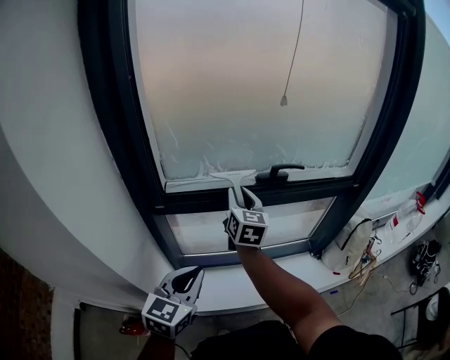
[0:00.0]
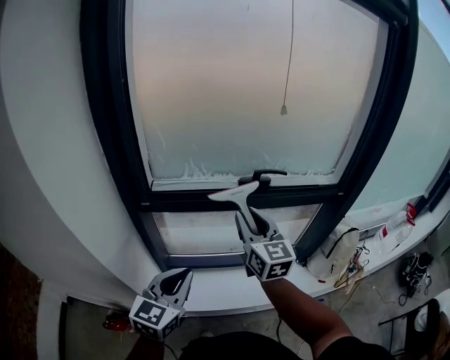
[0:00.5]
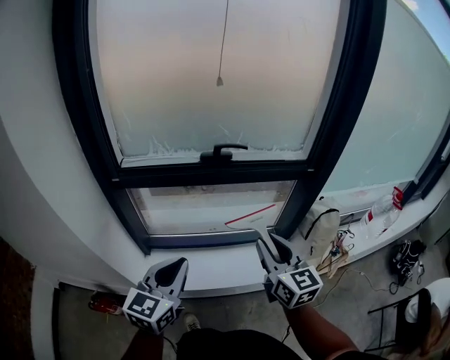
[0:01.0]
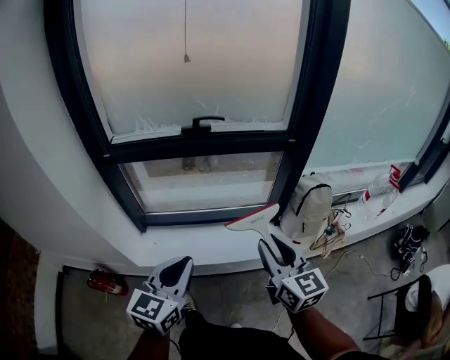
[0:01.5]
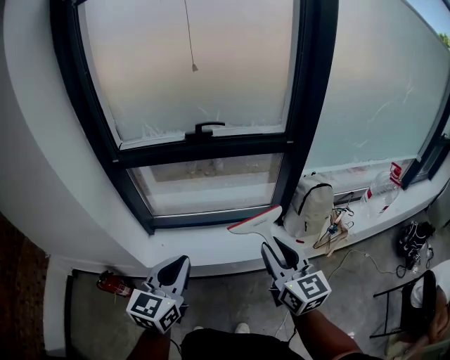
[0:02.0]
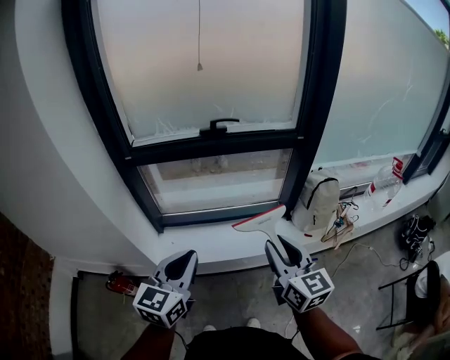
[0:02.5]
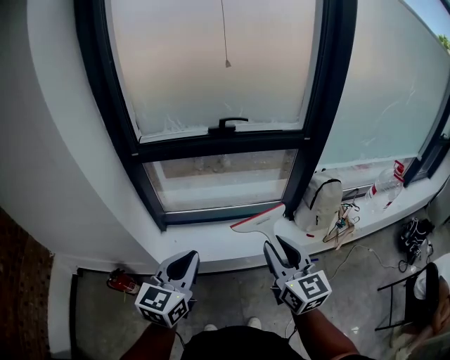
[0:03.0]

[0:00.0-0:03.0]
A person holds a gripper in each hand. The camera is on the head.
0:00.0 to 0:01.5: The left gripper is displaced to the right and backward by approximately 30 cm; the right gripper goes about 50 cm to the right and backward.
0:01.5 to 0:03.0: The left gripper heads to the left, covering some 10 cm. The right gripper goes roughly 10 cm to the left and backward.

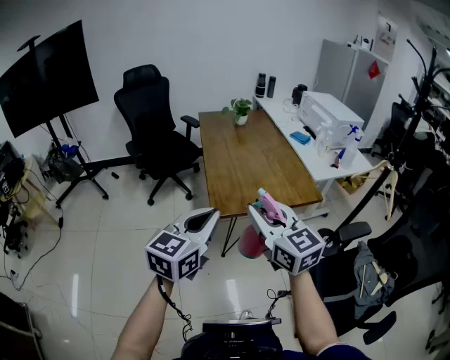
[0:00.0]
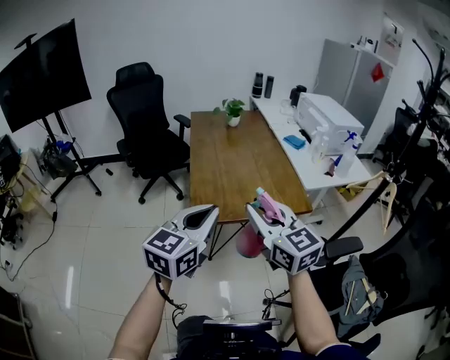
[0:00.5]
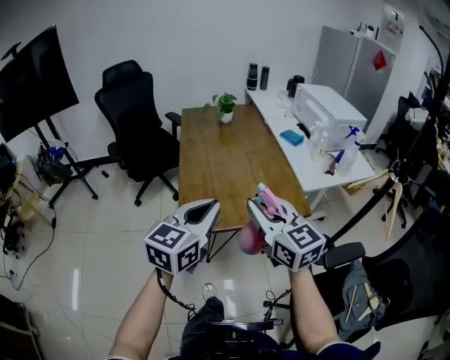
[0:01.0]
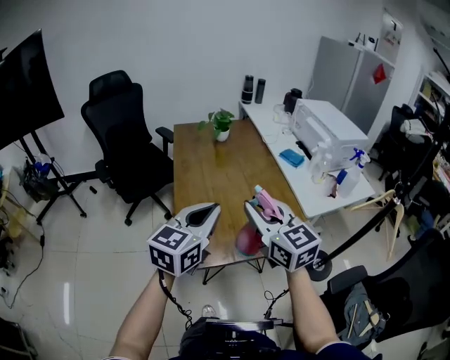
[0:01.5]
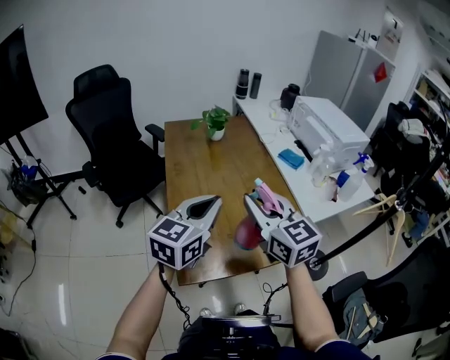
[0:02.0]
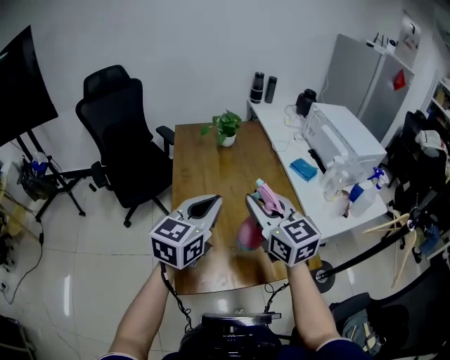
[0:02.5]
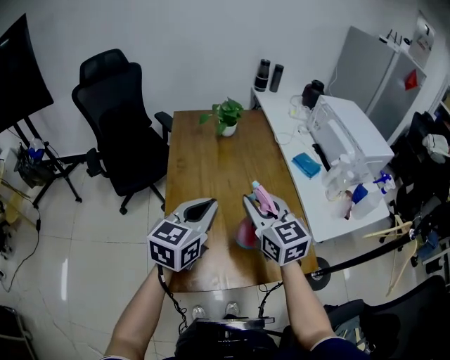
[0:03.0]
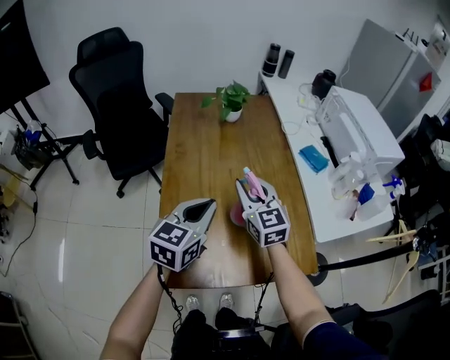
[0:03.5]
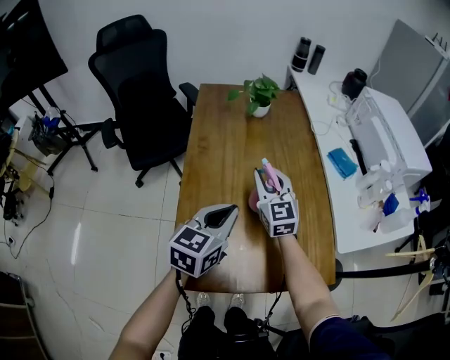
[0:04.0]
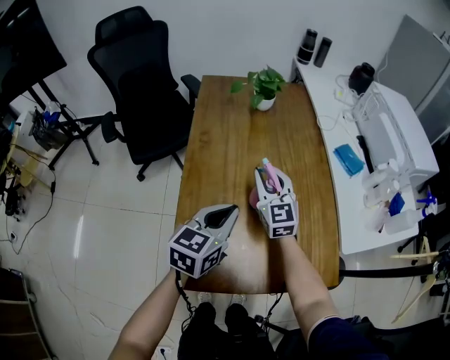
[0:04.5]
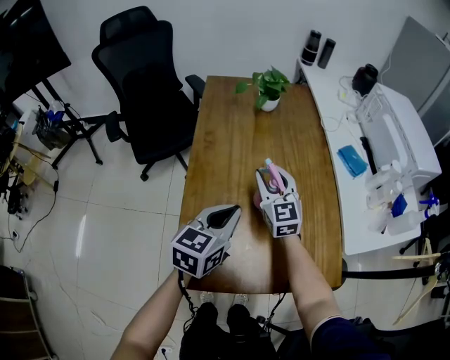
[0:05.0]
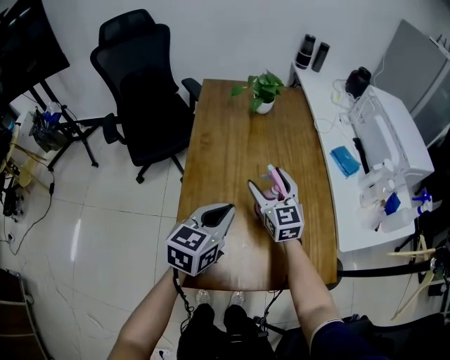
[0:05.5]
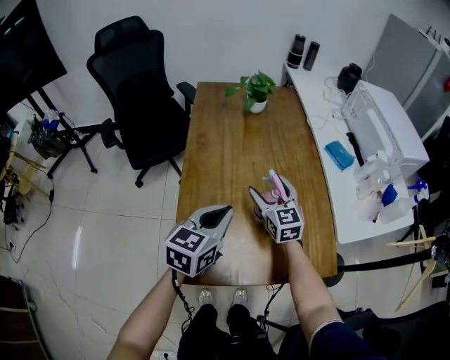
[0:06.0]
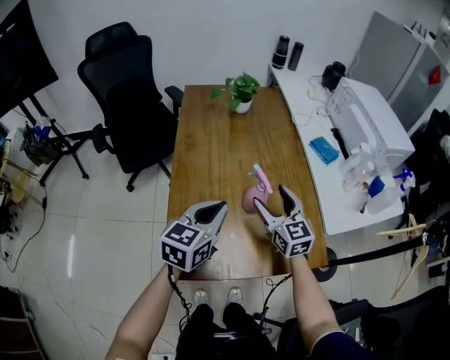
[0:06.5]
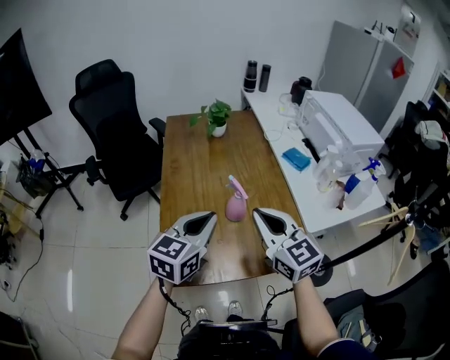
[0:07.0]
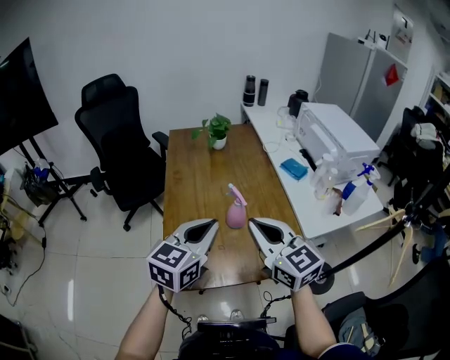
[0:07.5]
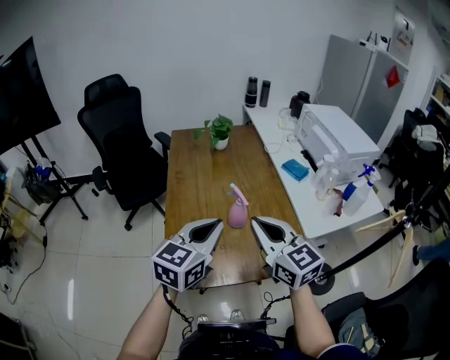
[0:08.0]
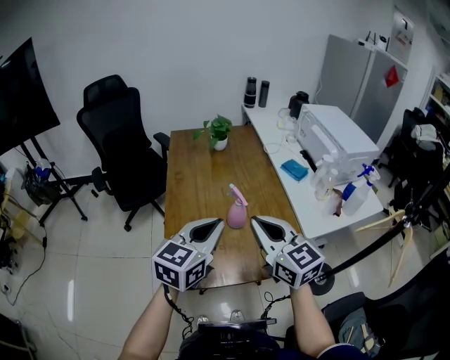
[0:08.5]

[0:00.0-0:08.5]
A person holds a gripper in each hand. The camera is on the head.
0:00.0 to 0:02.0: The two grippers go roughly 35 cm forward.
0:02.0 to 0:04.0: The right gripper is displaced forward and downward by about 30 cm; the left gripper goes approximately 15 cm downward and forward.
0:04.0 to 0:06.5: The right gripper shifts roughly 15 cm backward and to the right, and opens up.
0:06.5 to 0:08.5: The left gripper heads upward and backward, covering about 15 cm; the right gripper travels upward and backward by some 20 cm, and closes its fingers.

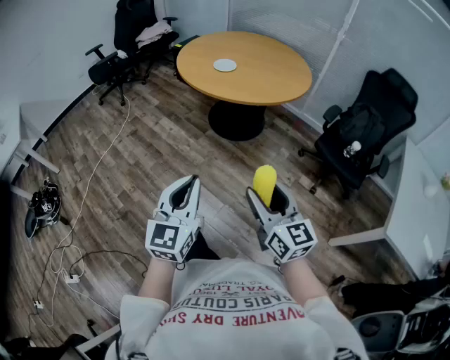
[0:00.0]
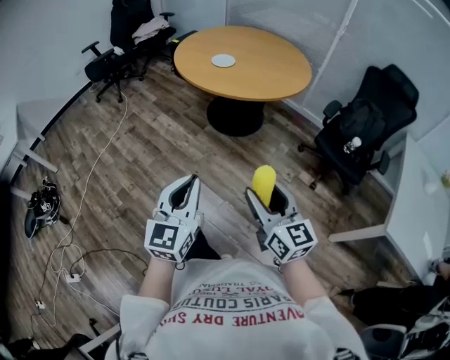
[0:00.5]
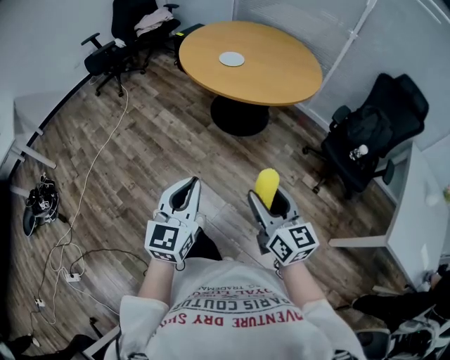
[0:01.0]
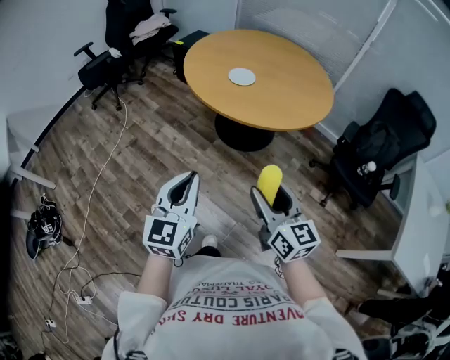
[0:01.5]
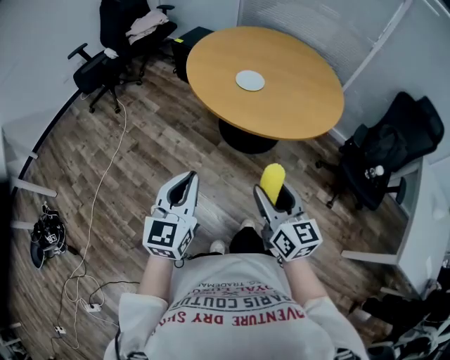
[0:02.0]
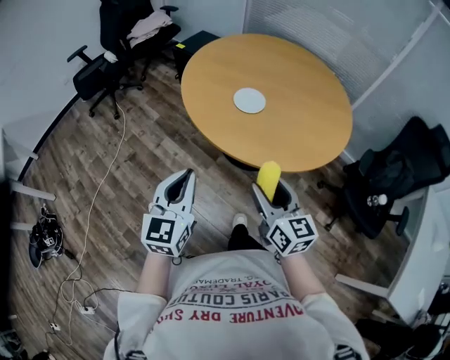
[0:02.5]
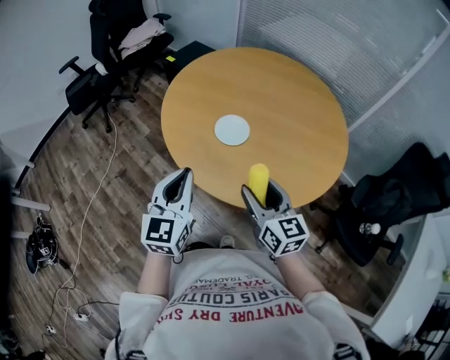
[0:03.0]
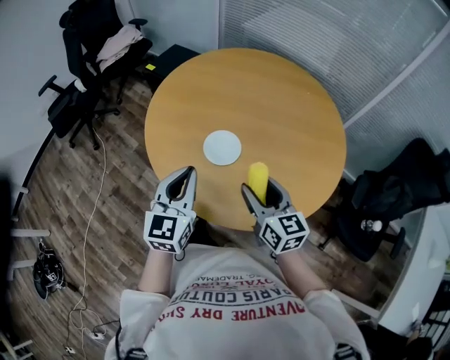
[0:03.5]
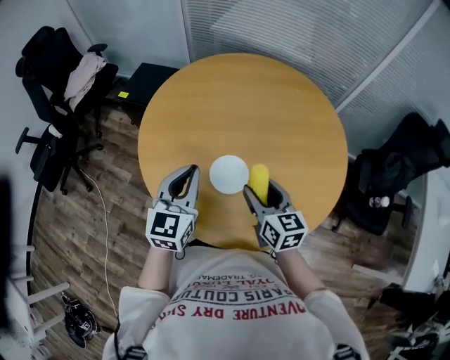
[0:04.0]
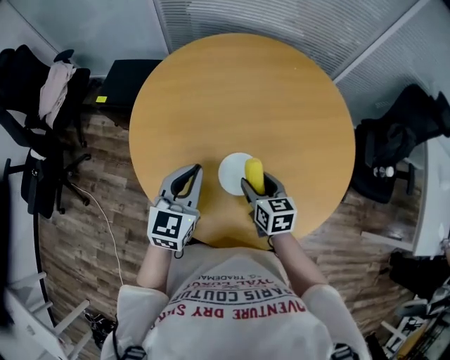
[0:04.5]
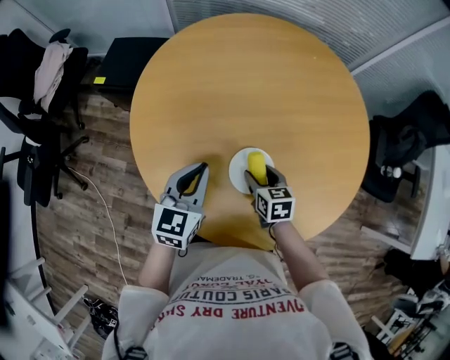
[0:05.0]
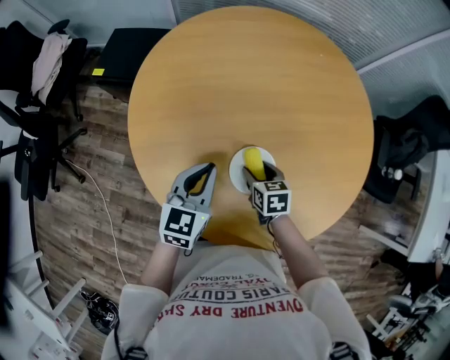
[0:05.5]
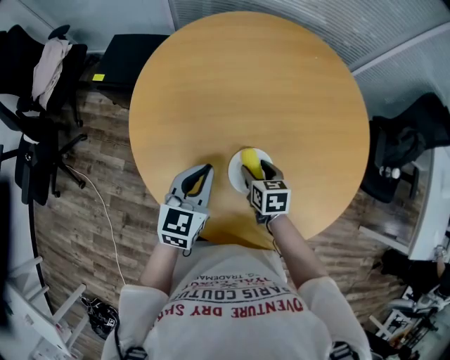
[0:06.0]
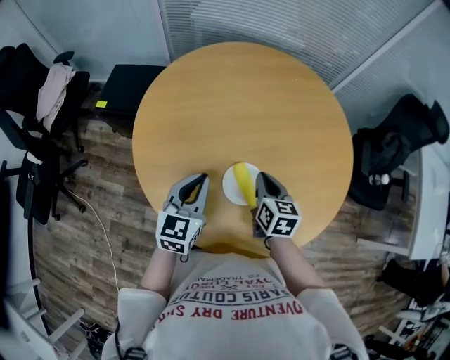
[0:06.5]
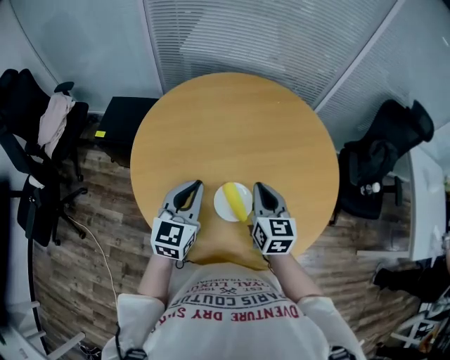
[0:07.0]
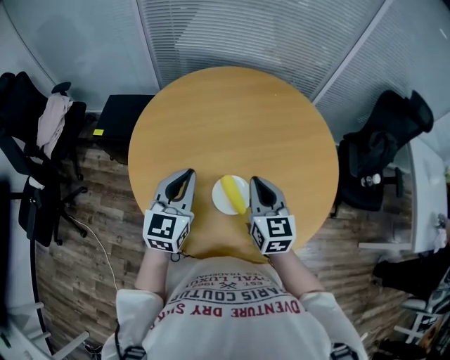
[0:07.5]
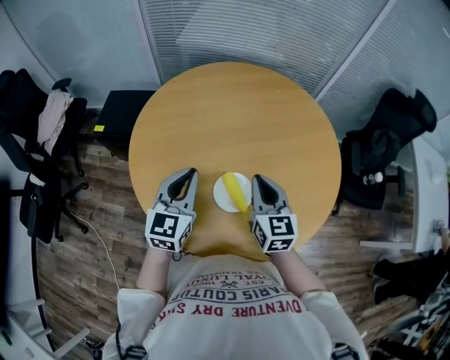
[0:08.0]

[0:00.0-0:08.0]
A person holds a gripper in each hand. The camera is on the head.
0:00.0 to 0:02.0: The two grippers go roughly 35 cm forward and to the left.
0:02.0 to 0:04.0: Both grippers are carried forward, approximately 50 cm.
0:04.0 to 0:06.0: The left gripper moves downward and forward, approximately 15 cm; the right gripper goes roughly 20 cm downward, and tips its fingers downward by about 30 degrees.
0:06.0 to 0:08.0: The right gripper travels upward by approximately 20 cm, points its fingers roughly 30 degrees further upward, and closes its fingers. Meanwhile the left gripper goes about 10 cm upward.

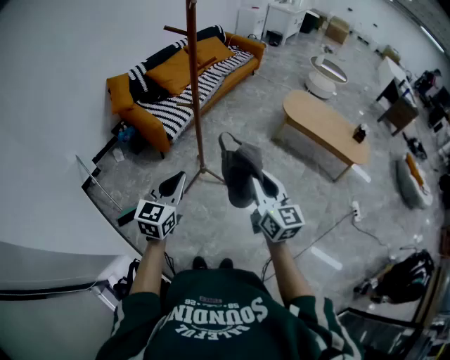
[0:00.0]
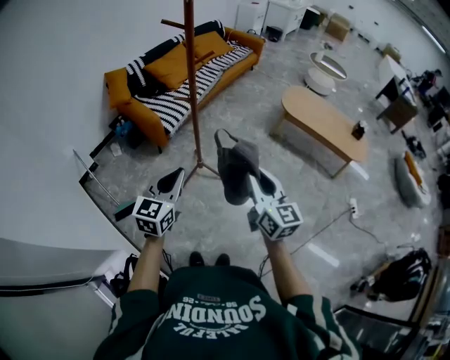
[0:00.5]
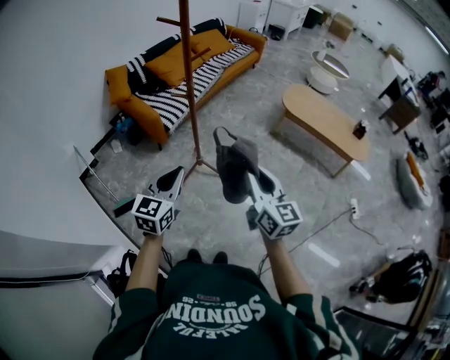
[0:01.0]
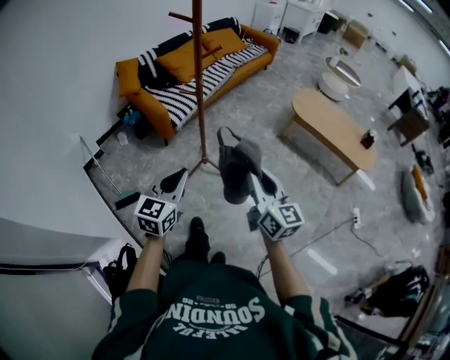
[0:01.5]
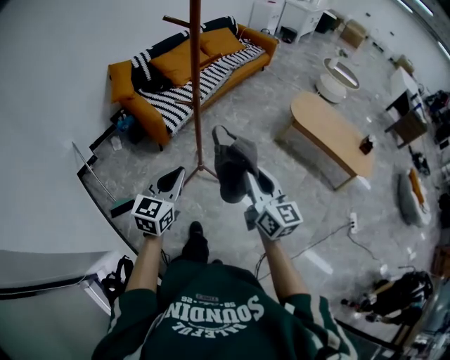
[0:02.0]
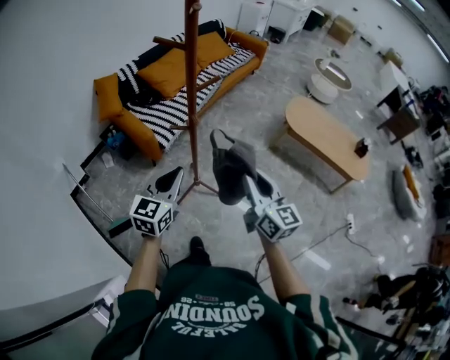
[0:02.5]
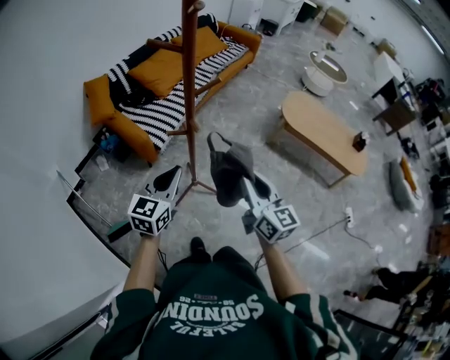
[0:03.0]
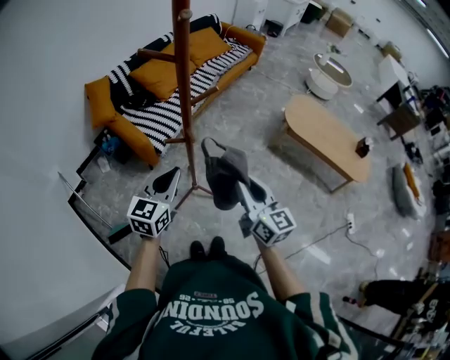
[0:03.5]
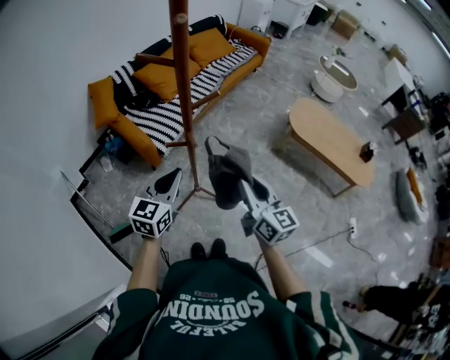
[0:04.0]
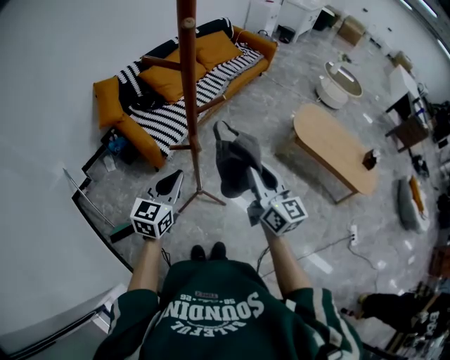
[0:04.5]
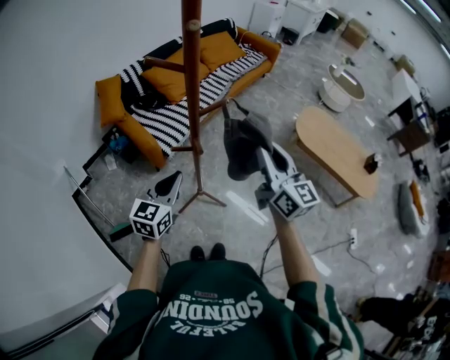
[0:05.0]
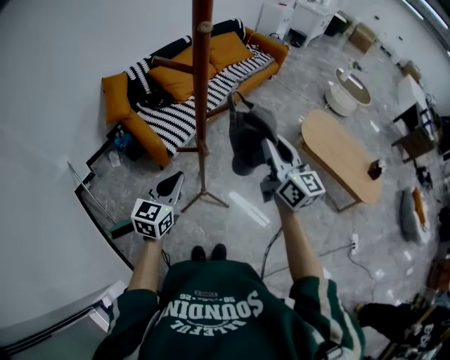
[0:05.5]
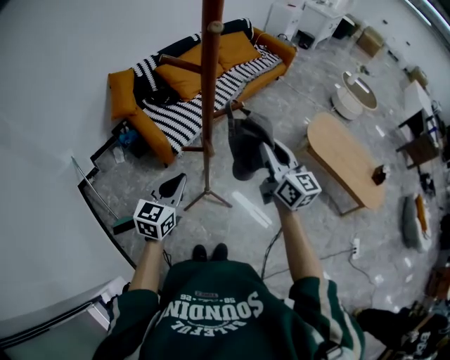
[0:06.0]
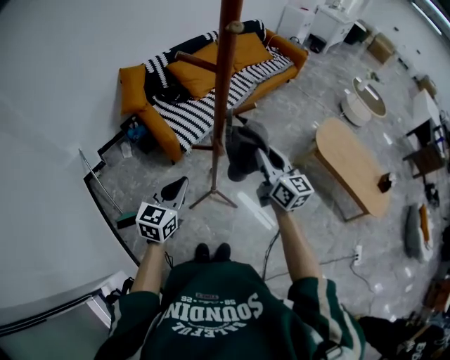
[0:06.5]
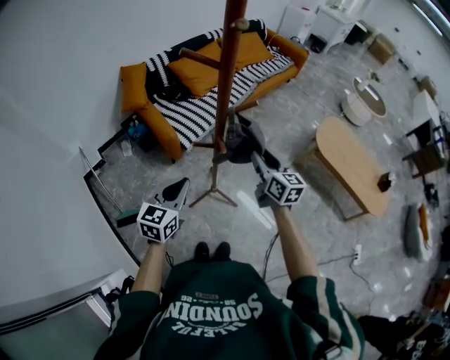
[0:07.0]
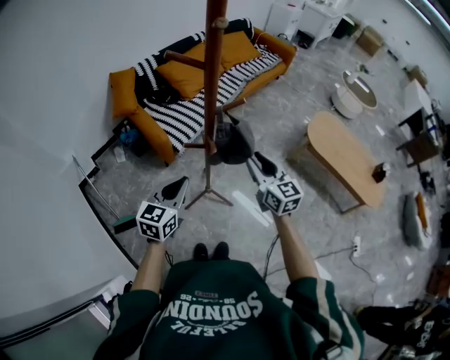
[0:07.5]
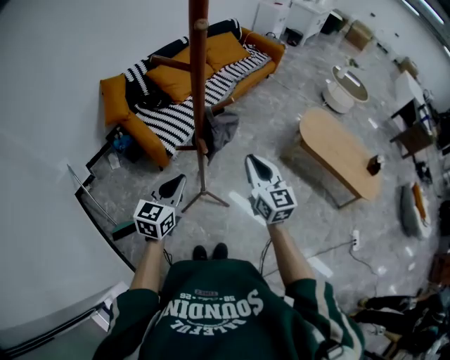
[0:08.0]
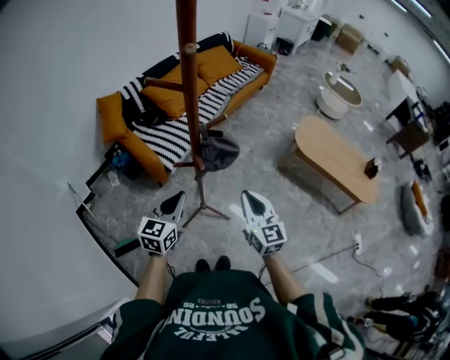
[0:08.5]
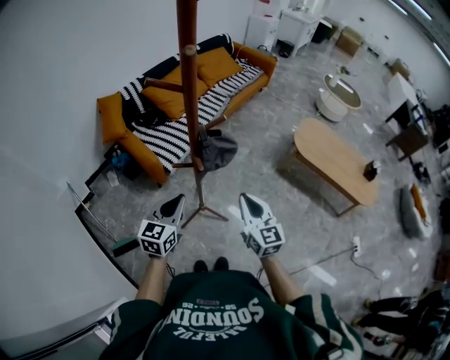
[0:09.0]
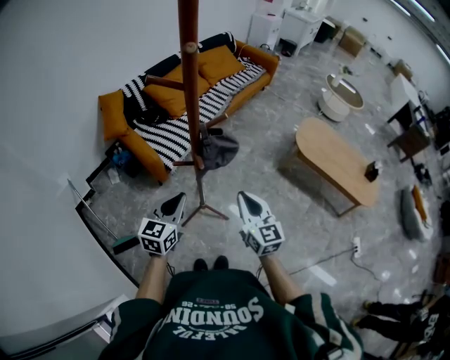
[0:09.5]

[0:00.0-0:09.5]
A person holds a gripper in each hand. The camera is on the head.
0:00.0 to 0:02.0: Both grippers travel together forward, some 10 cm.
0:02.0 to 0:04.0: Both grippers travel together forward, about 20 cm.
0:04.0 to 0:05.5: The right gripper is displaced forward and upward by about 15 cm.
0:05.5 to 0:07.5: The right gripper travels downward by approximately 15 cm.
0:07.5 to 0:09.5: The right gripper moves backward, roughly 10 cm, and closes up.
